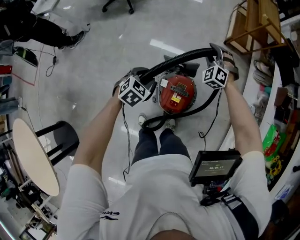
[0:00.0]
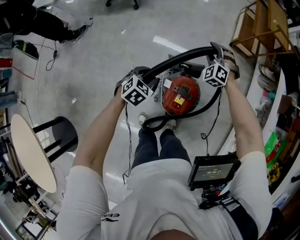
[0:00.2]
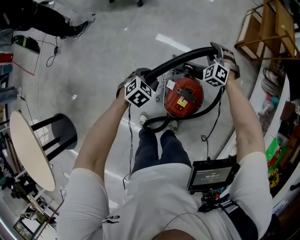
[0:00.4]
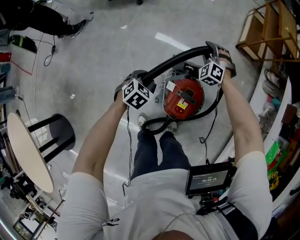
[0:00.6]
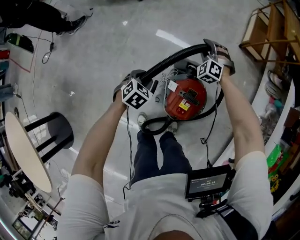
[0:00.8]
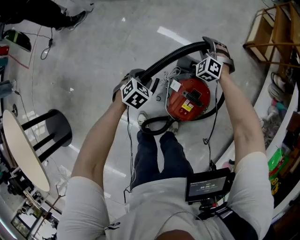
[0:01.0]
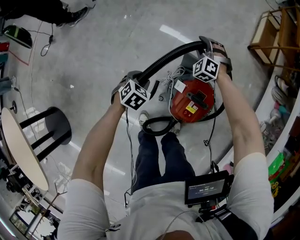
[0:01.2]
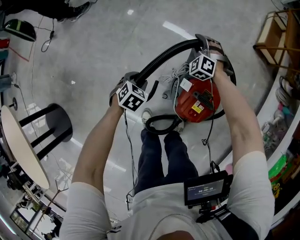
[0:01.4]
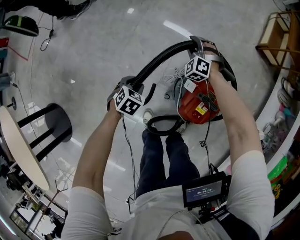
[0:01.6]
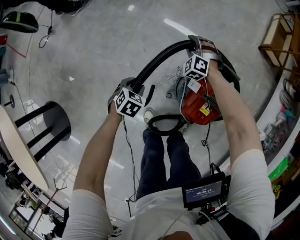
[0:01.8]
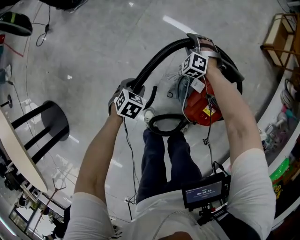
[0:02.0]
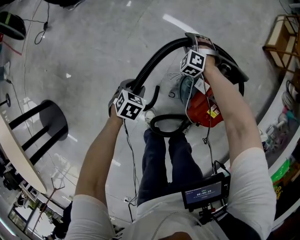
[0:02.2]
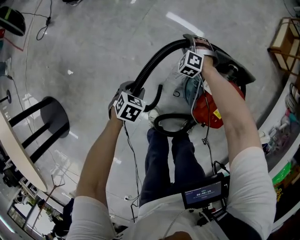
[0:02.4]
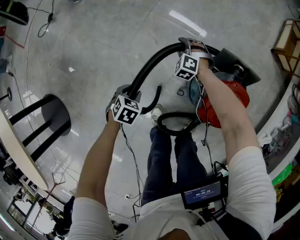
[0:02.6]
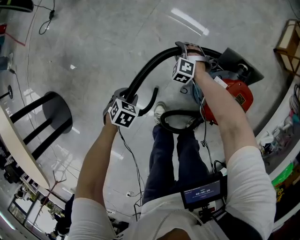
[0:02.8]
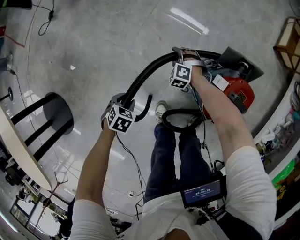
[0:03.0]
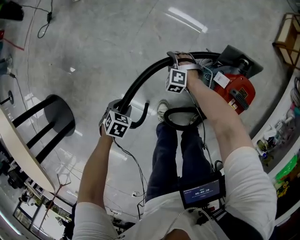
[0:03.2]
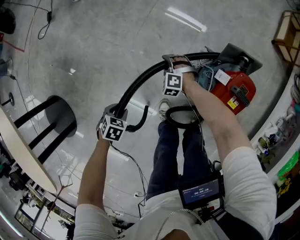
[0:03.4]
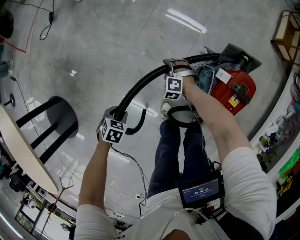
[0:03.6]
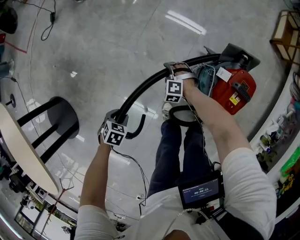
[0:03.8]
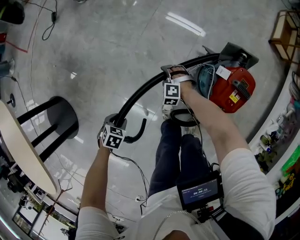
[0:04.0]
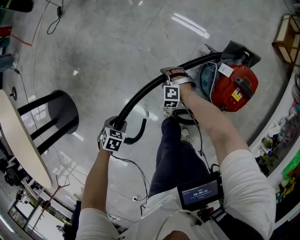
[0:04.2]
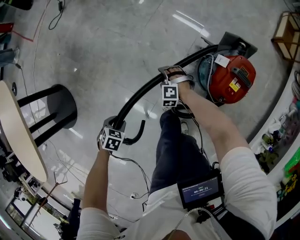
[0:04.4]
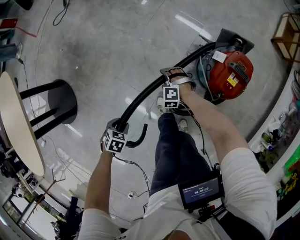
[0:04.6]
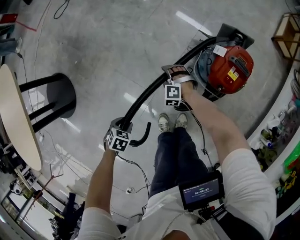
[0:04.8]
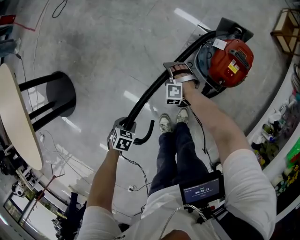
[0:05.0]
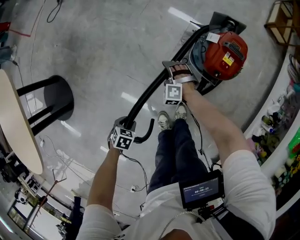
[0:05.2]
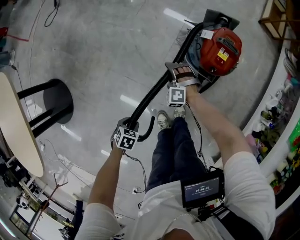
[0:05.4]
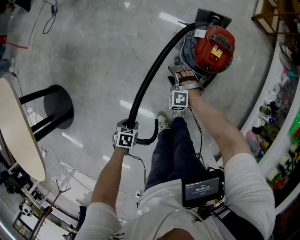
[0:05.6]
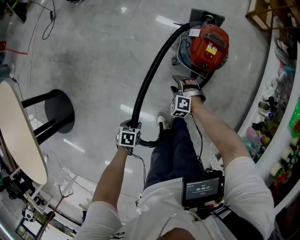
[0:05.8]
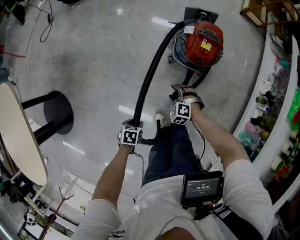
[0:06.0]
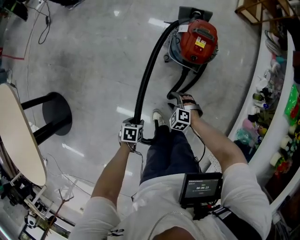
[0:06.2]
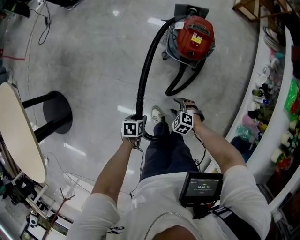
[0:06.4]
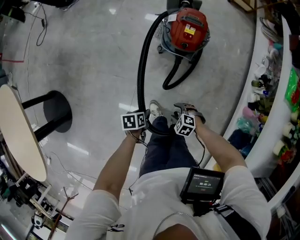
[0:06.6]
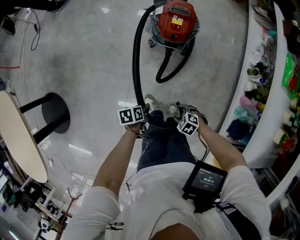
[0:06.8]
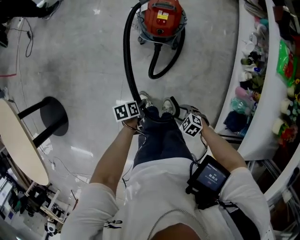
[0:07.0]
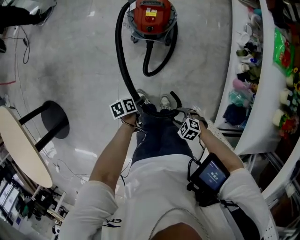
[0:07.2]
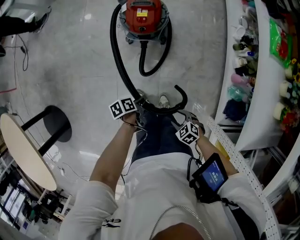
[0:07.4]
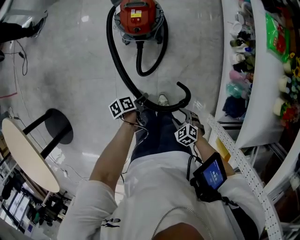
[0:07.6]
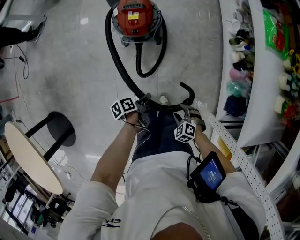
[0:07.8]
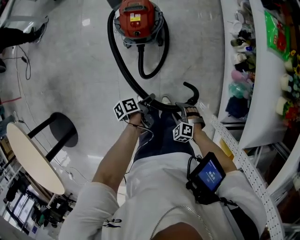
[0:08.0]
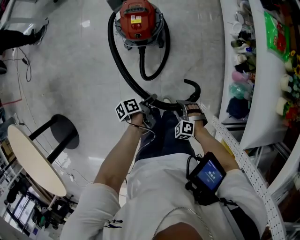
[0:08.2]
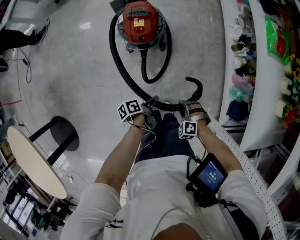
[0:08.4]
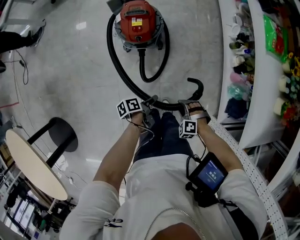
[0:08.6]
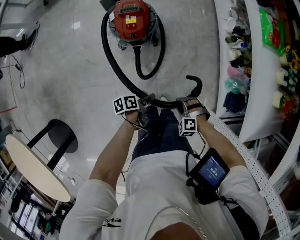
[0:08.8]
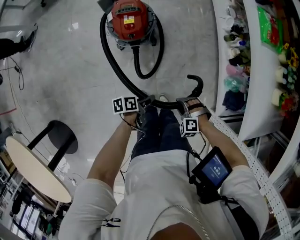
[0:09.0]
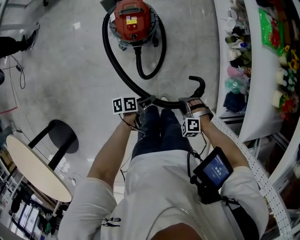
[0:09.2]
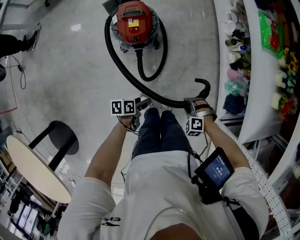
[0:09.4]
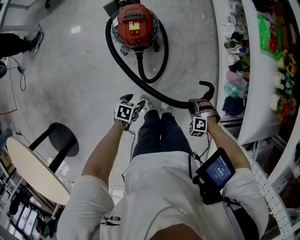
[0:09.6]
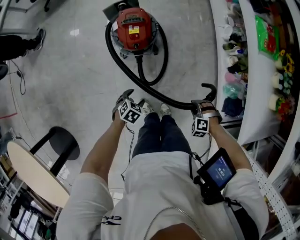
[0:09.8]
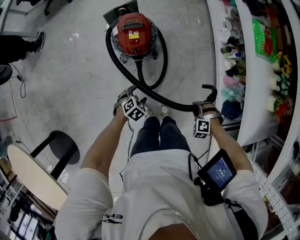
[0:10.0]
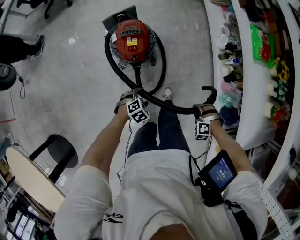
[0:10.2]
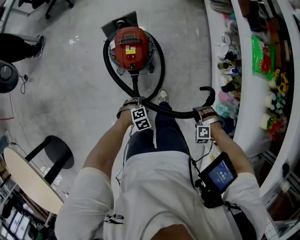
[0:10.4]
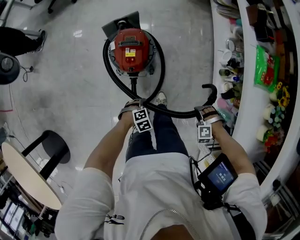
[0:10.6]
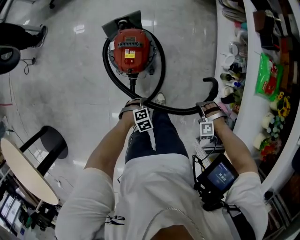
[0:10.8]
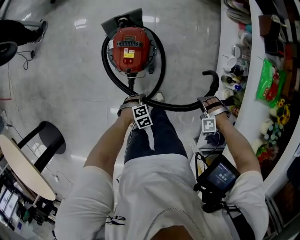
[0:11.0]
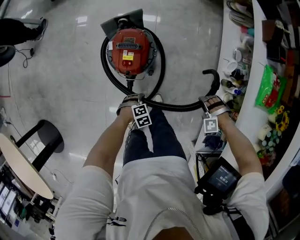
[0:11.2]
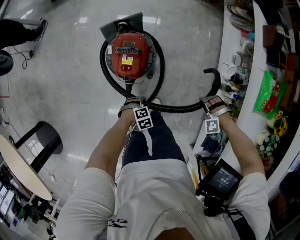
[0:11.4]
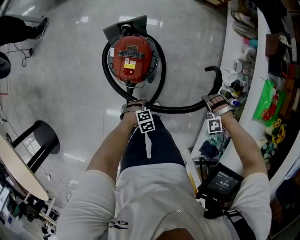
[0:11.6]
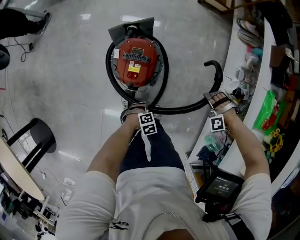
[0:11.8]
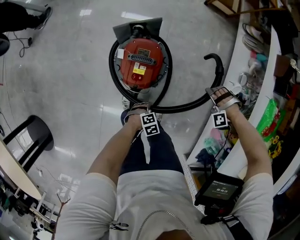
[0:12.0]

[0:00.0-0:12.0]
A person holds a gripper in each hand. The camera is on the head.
0:00.0 to 0:01.6: The two grippers go some 35 cm downward and to the left. The left gripper swivels roughly 30 degrees.
0:01.6 to 0:03.0: The right gripper ends up some 30 cm from where it was, while the left gripper changes place by some 25 cm.
0:03.0 to 0:04.4: The left gripper ends up roughly 25 cm from where it was; the right gripper changes place by some 25 cm.
0:04.4 to 0:06.0: The left gripper changes place by approximately 20 cm. The right gripper ends up about 30 cm from where it was, and changes its angle by about 20 degrees.
0:06.0 to 0:07.6: The right gripper ends up roughly 40 cm from where it was, and rolls clockwise, seen from behind, by about 50 degrees. Meanwhile the left gripper changes place by roughly 30 cm, and swivels approximately 40 degrees.
0:07.6 to 0:09.0: The right gripper moves forward, approximately 5 cm, and turns by roughly 40 degrees. The left gripper rotates some 20 degrees.
0:09.0 to 0:10.4: The left gripper shifts by some 10 cm, and rolls clockwise, seen from behind, by about 90 degrees. Meanwhile the right gripper shifts by about 15 cm.
0:10.4 to 0:12.0: The right gripper changes place by about 35 cm, and rotates approximately 40 degrees, while the left gripper moves about 20 cm.

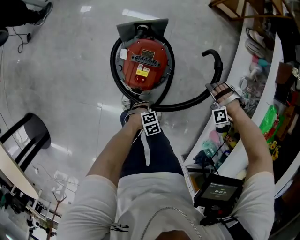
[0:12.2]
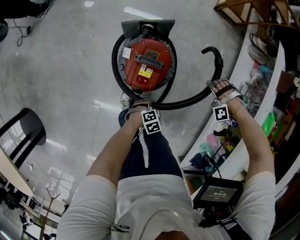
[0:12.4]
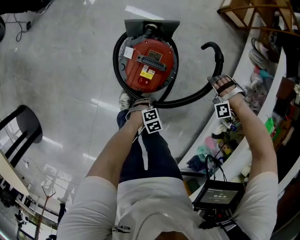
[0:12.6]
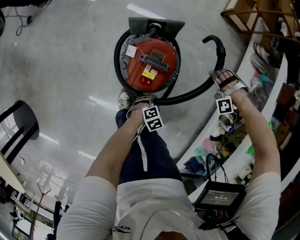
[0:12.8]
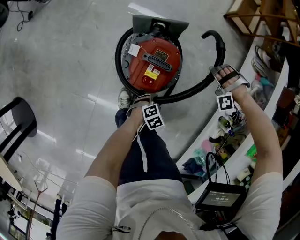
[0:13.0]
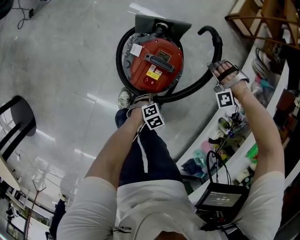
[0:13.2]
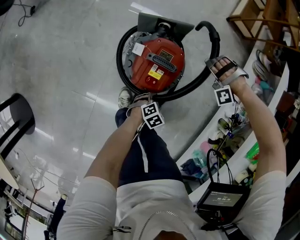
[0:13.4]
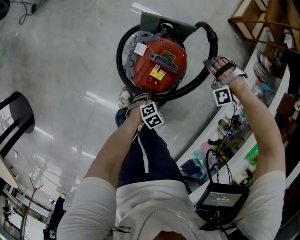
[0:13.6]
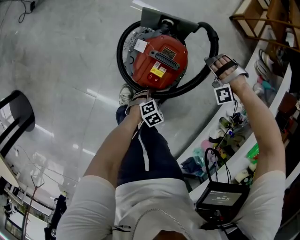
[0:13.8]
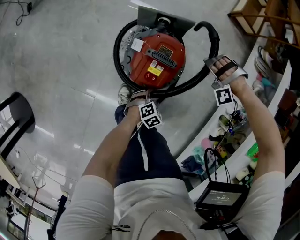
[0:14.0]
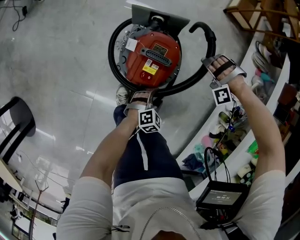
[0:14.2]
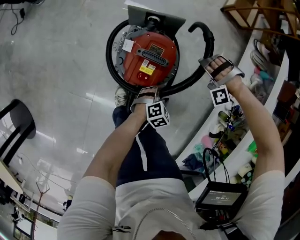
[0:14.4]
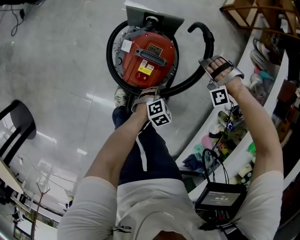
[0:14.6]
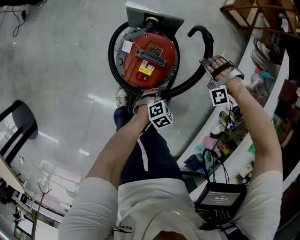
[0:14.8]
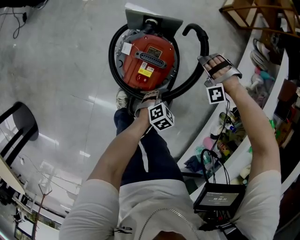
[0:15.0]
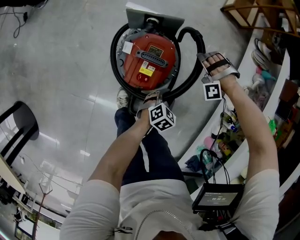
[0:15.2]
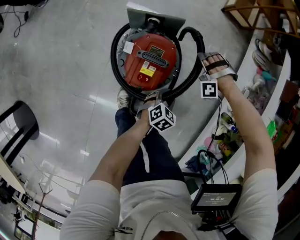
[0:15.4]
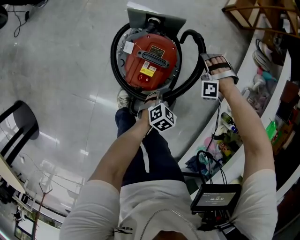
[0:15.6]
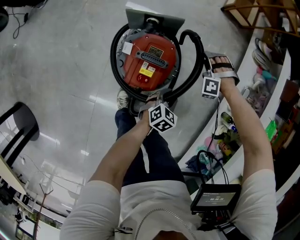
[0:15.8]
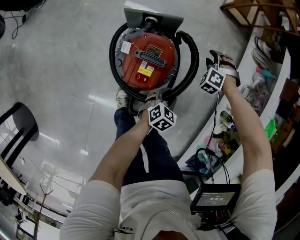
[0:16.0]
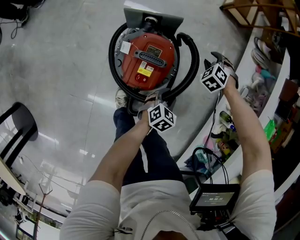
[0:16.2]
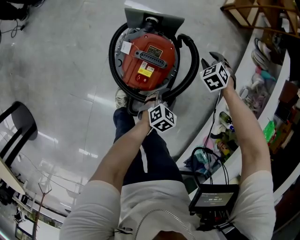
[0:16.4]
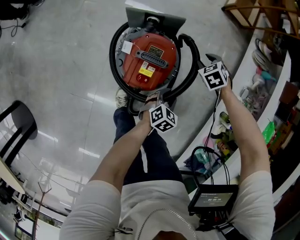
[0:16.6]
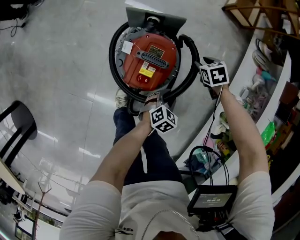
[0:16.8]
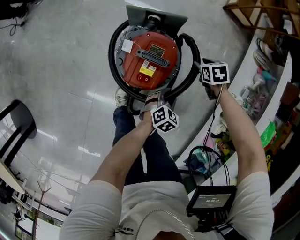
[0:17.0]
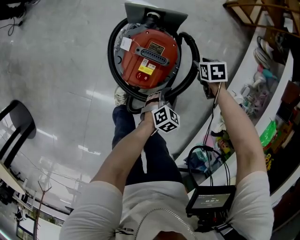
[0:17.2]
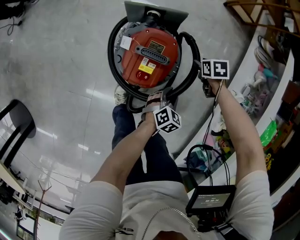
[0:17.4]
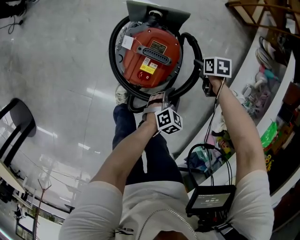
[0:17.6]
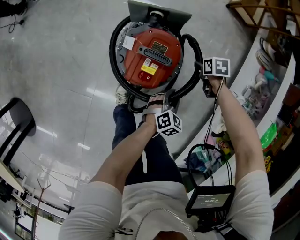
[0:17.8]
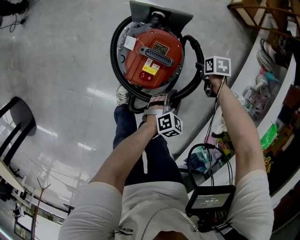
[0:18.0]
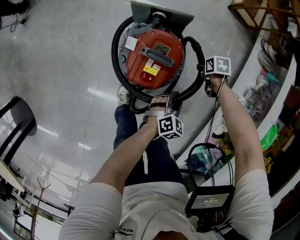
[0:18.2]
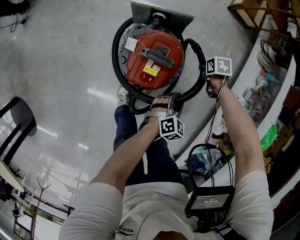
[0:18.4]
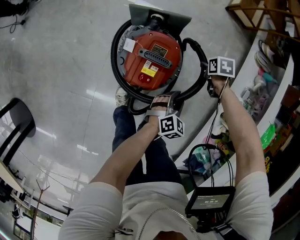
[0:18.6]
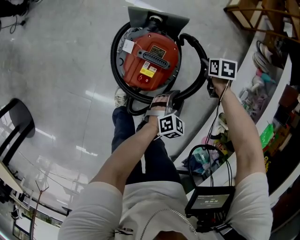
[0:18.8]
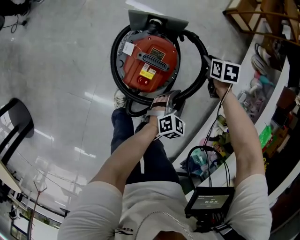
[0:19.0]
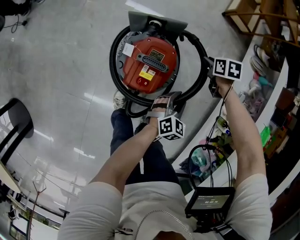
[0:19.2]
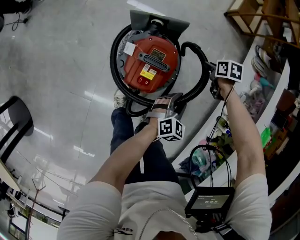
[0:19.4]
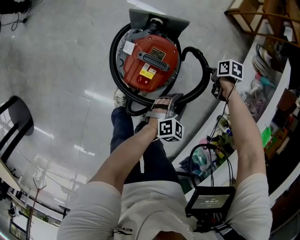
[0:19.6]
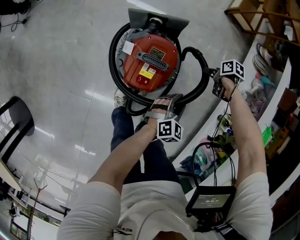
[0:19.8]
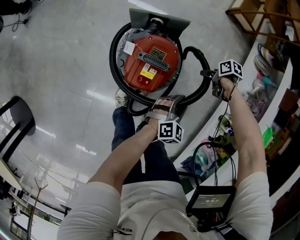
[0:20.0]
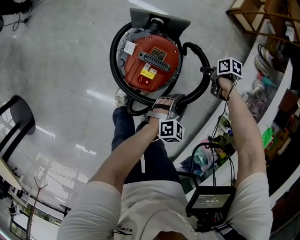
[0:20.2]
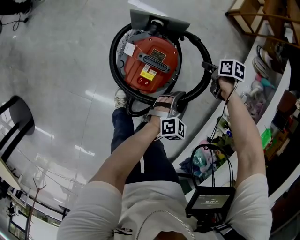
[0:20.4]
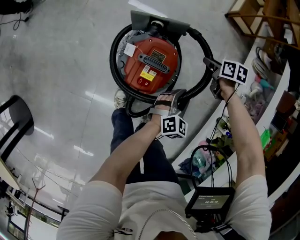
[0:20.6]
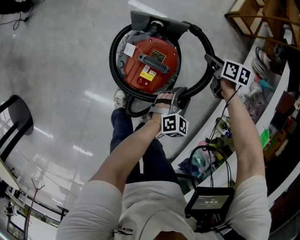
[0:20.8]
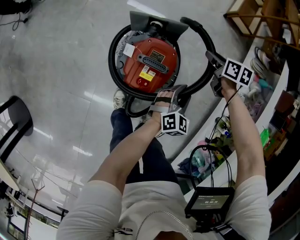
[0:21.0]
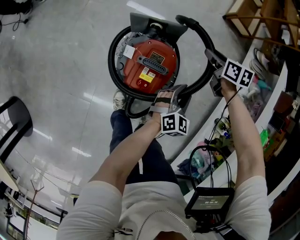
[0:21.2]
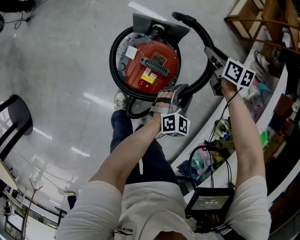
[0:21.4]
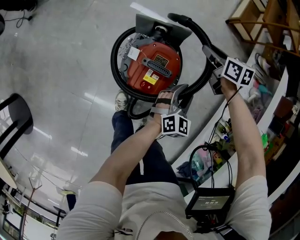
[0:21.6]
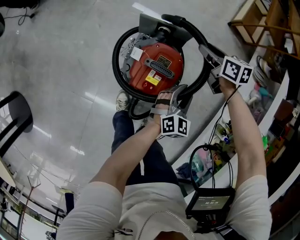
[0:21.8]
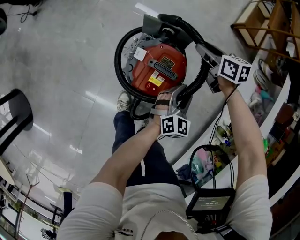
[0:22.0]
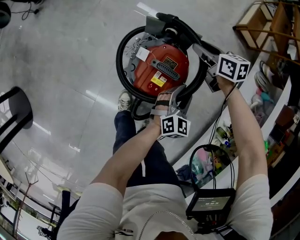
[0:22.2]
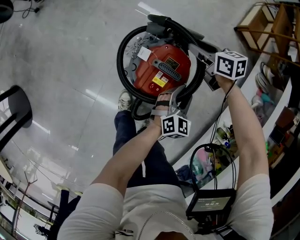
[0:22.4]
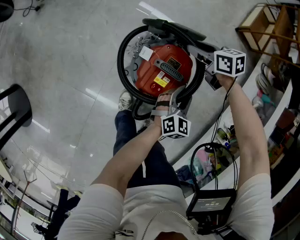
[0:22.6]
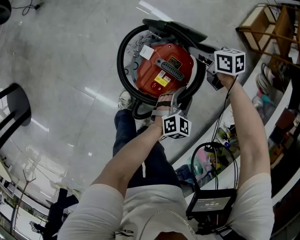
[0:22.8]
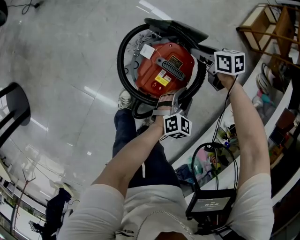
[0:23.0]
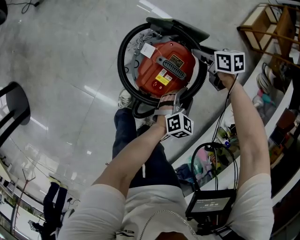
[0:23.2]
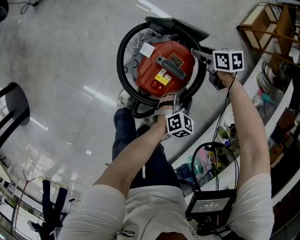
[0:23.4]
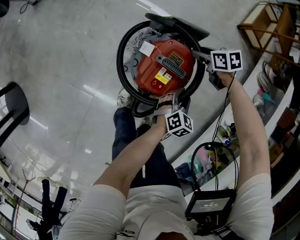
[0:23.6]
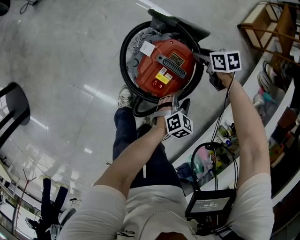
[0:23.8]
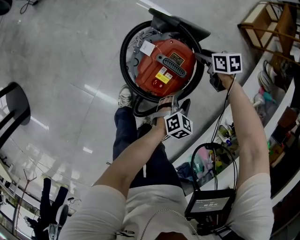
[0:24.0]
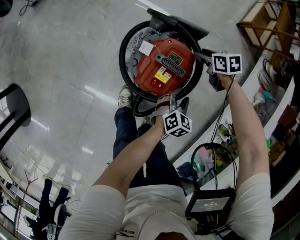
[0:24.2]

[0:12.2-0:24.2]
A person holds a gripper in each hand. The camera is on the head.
0:12.2 to 0:13.8: The left gripper moves to the left, about 5 cm, and turns by approximately 20 degrees; the right gripper shifts about 20 cm to the left, and swivels roughly 30 degrees.
0:13.8 to 0:15.2: The left gripper moves forward, upward and to the right, approximately 10 cm, and closes its fingers. Meanwhile the right gripper rotates some 20 degrees.
0:15.2 to 0:16.6: The right gripper rotates around the line of its fingers by some 80 degrees, clockwise from behind.
0:16.6 to 0:18.2: The right gripper goes roughly 10 cm downward, and rolls clockwise, seen from behind, by about 40 degrees.
0:18.2 to 0:19.8: The right gripper moves some 10 cm upward and comes back, and rotates some 20 degrees. The left gripper ends up roughly 5 cm from where it was.
0:19.8 to 0:21.2: The right gripper moves some 20 cm, and swivels roughly 40 degrees. The left gripper ends up approximately 10 cm from where it was.
0:21.2 to 0:22.6: The left gripper travels to the left by some 5 cm, while the right gripper travels to the left by some 15 cm, and swivels approximately 30 degrees.
0:22.6 to 0:24.2: The left gripper shifts about 5 cm downward, while the right gripper heads downward, to the right and backward, covering roughly 10 cm.
